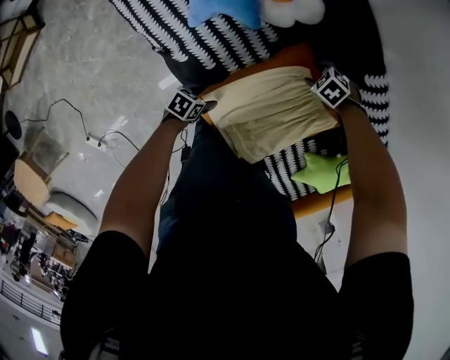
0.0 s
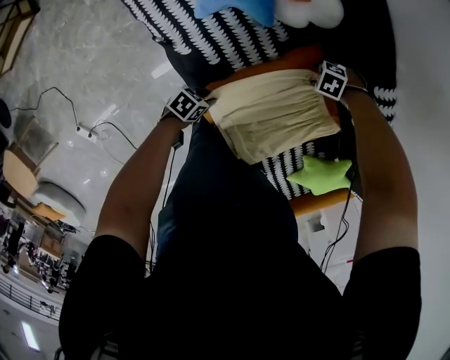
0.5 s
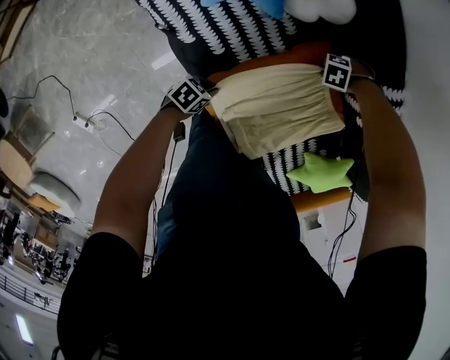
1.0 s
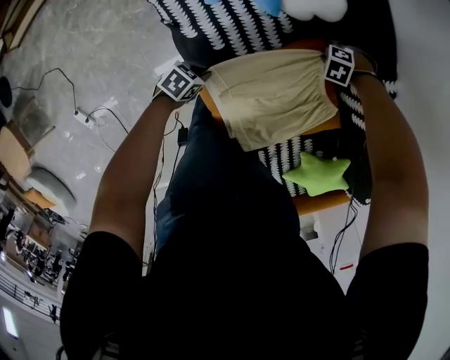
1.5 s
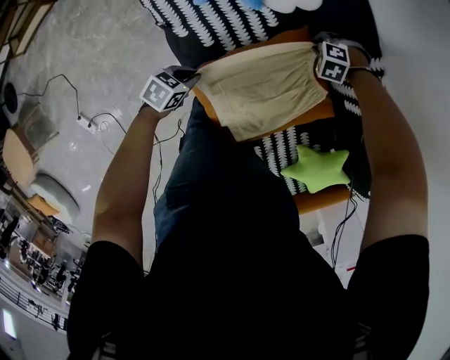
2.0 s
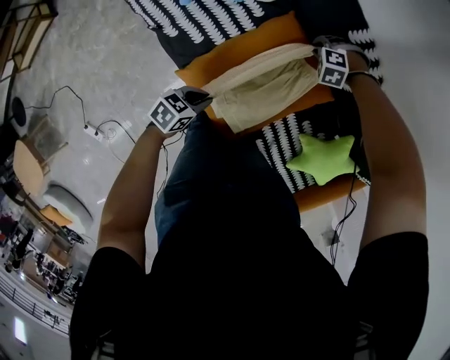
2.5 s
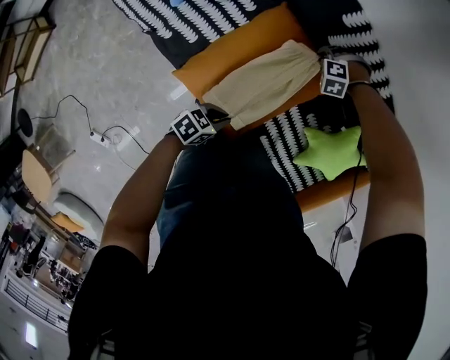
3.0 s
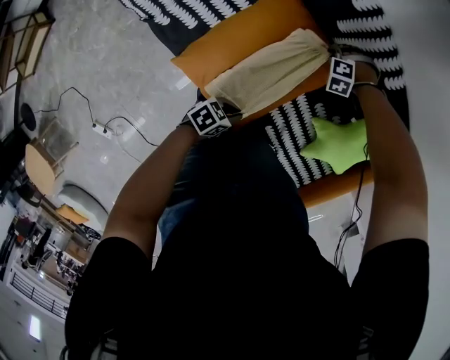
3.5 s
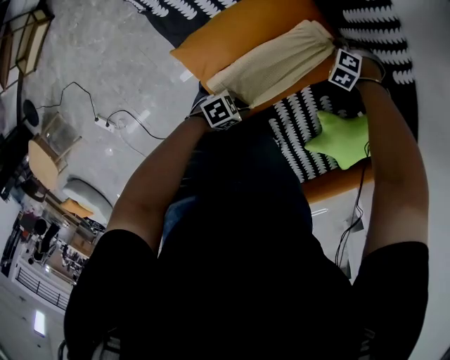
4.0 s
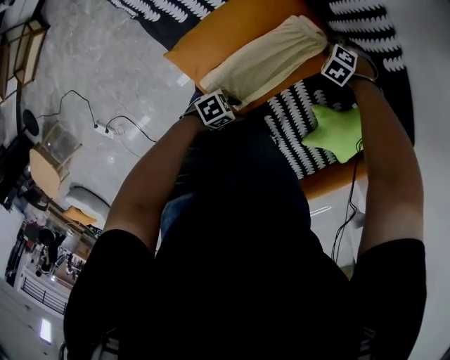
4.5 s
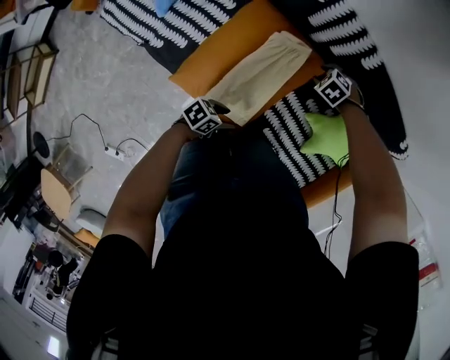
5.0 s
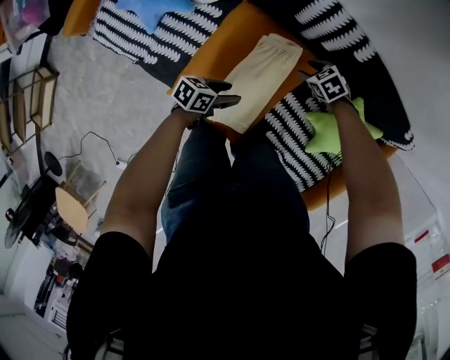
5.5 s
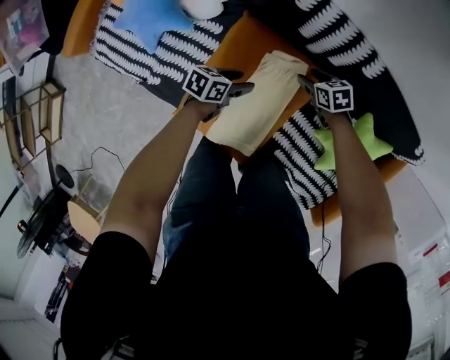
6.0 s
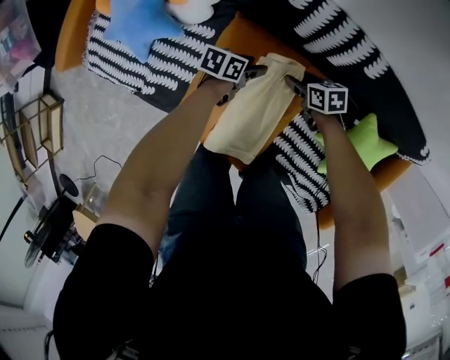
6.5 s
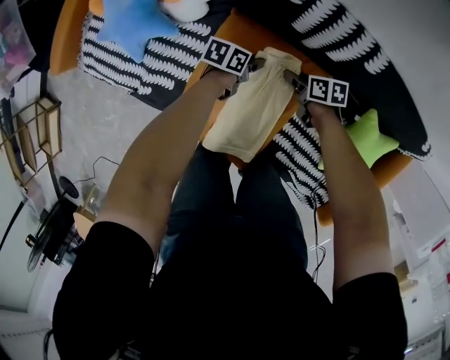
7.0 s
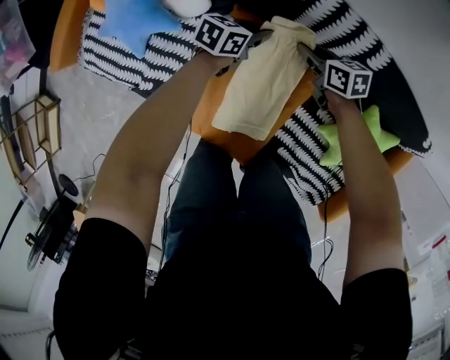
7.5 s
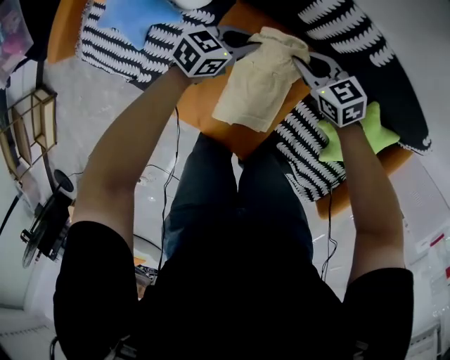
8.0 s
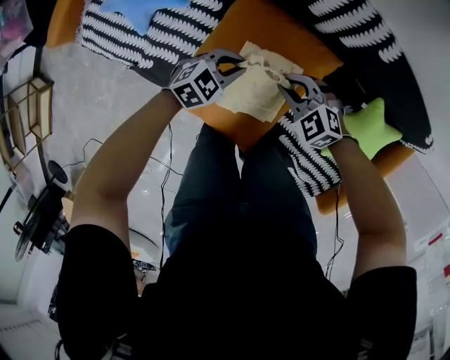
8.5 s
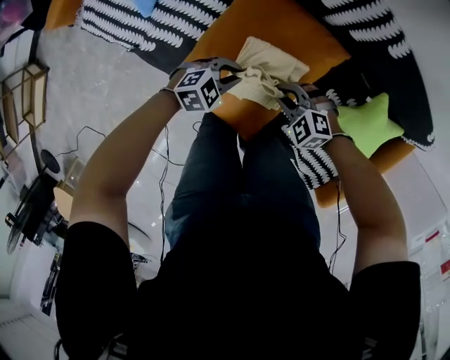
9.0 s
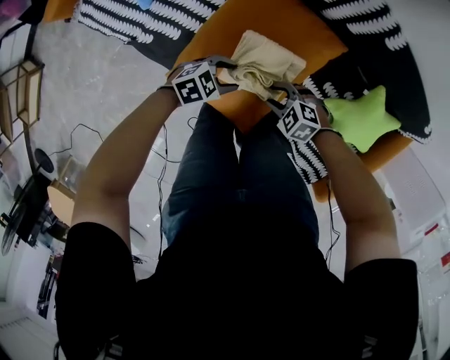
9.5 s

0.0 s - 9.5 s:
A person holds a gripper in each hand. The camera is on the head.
0.0 s - 2.0 s: The left gripper moves upward, some 10 cm, and closes up. Meanwhile the right gripper changes place by some 5 cm, changes its angle by some 40 degrees, and closes up.
2.0 s - 4.0 s: The left gripper moves some 35 cm, and swivels some 40 degrees, while the right gripper ends up roughly 25 cm from where it was.
4.0 s - 5.5 s: The left gripper shifts by about 15 cm, and opens its fingers; the right gripper heads upward, covering roughly 5 cm, rolls clockwise, seen from behind, by some 60 degrees, and opens up.
5.5 s - 7.5 s: The left gripper travels downward and back again, about 10 cm each way, and closes. Meanwhile the right gripper changes place by approximately 10 cm, changes its angle by about 50 degrees, and closes.
7.5 s - 9.5 s: The right gripper moves some 35 cm, and rotates around the line of its fingers by about 60 degrees, counterclockwise from behind. The left gripper moves about 30 cm, swivels about 40 degrees, and opens its fingers.

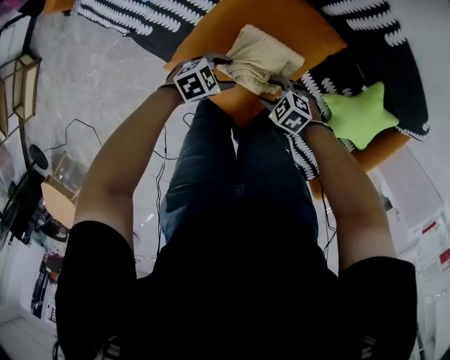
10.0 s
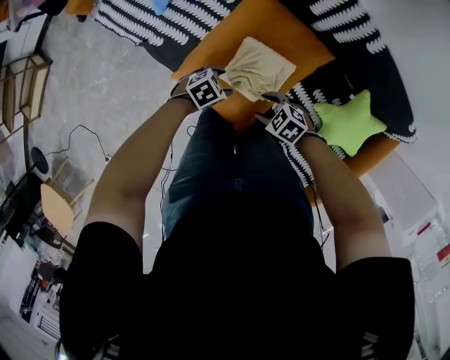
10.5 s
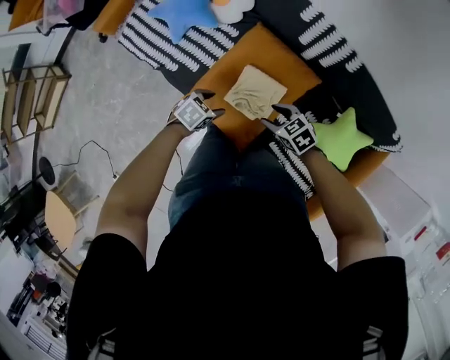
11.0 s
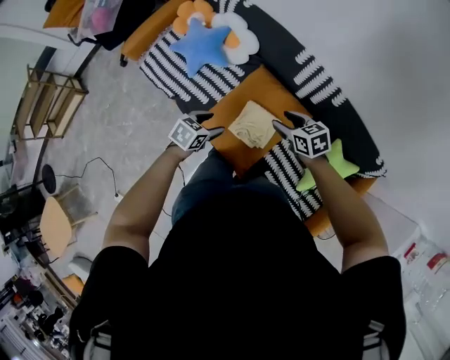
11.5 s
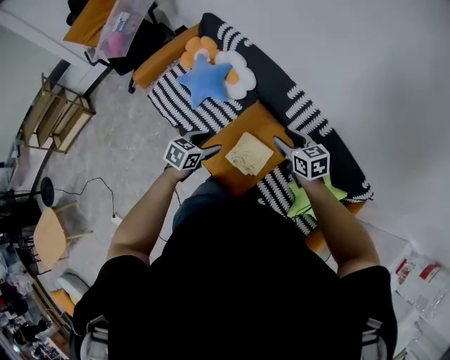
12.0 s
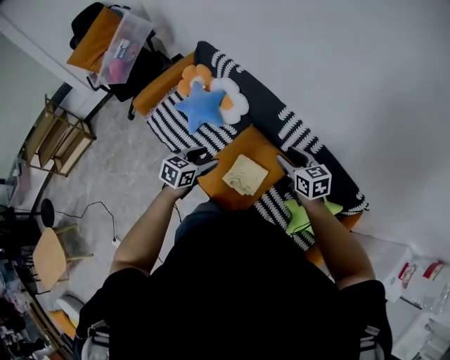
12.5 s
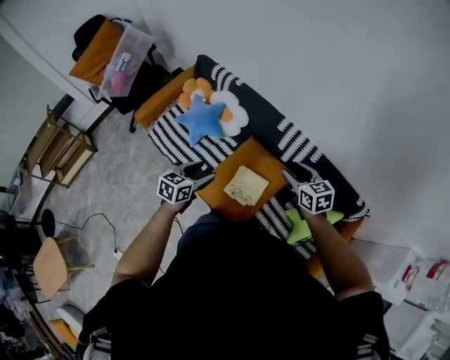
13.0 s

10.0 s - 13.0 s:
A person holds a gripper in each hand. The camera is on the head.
10.0 s - 11.5 s: The grippers both shift upward by about 35 cm. The left gripper swivels about 40 degrees. The right gripper rotates approximately 40 degrees.
11.5 s - 13.0 s: The two grippers go approximately 15 cm upward. The left gripper rotates approximately 20 degrees; the right gripper swivels approximately 20 degrees.

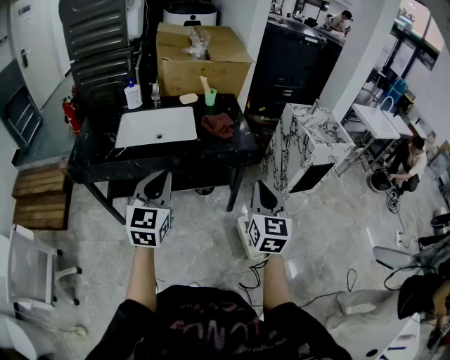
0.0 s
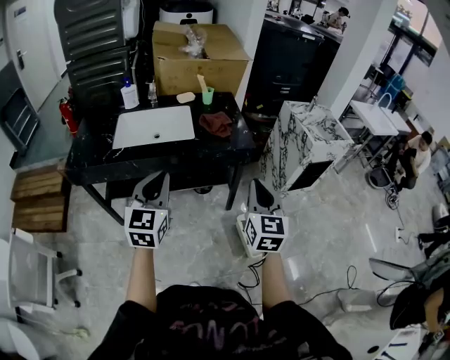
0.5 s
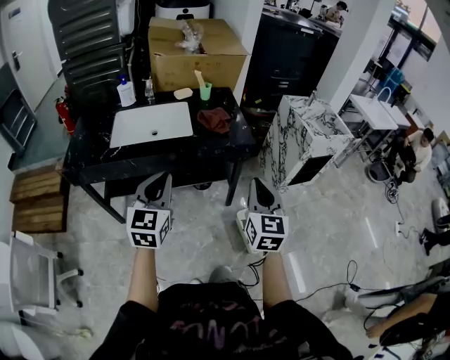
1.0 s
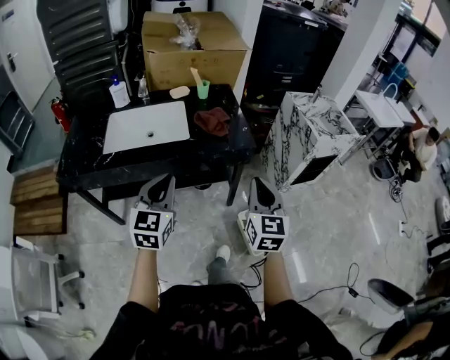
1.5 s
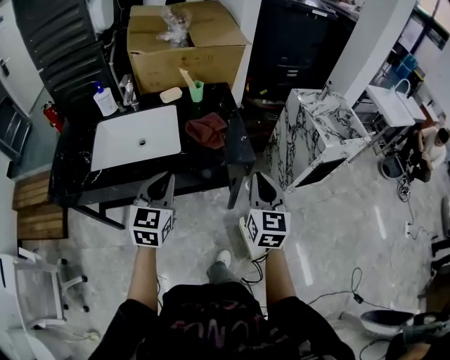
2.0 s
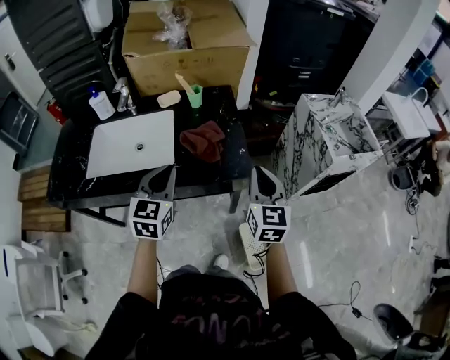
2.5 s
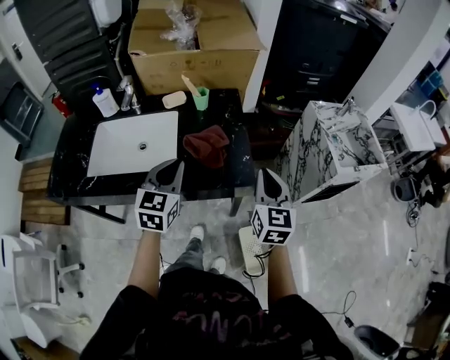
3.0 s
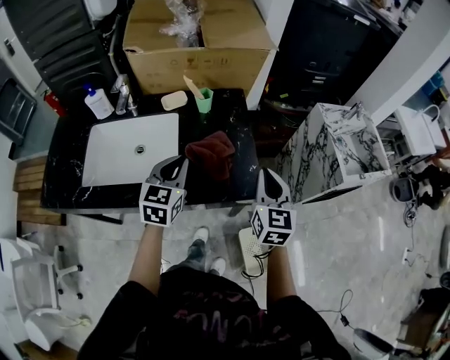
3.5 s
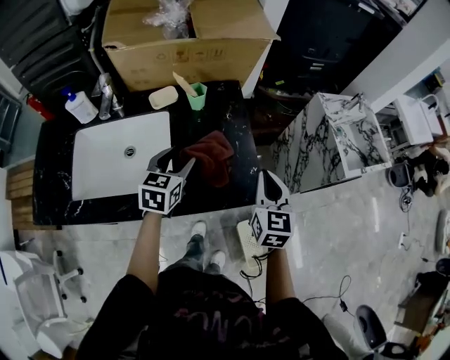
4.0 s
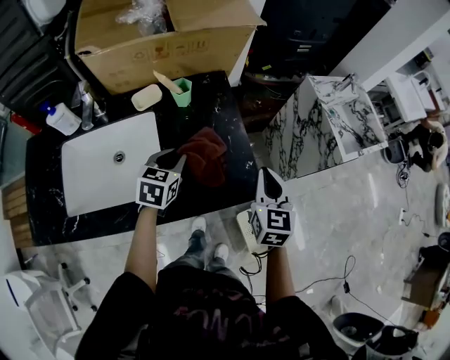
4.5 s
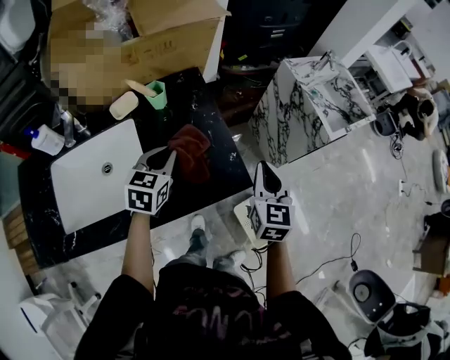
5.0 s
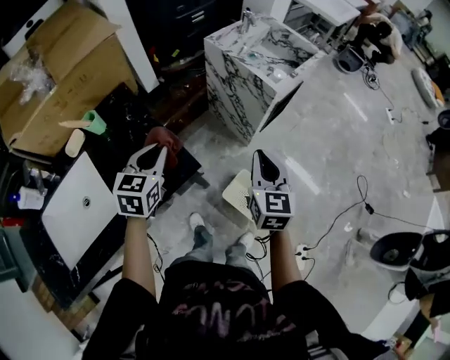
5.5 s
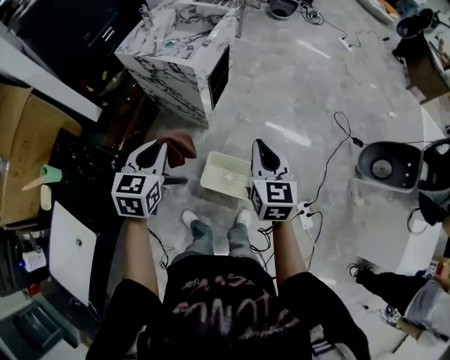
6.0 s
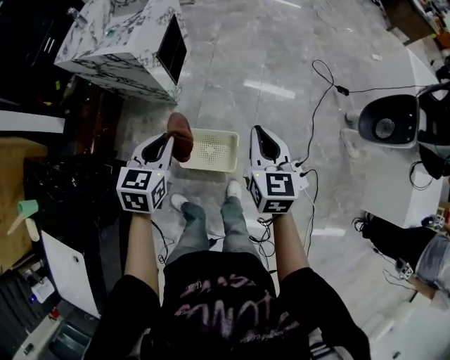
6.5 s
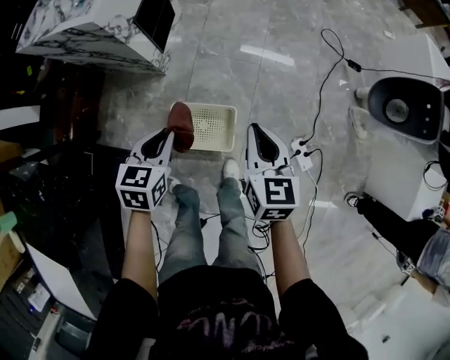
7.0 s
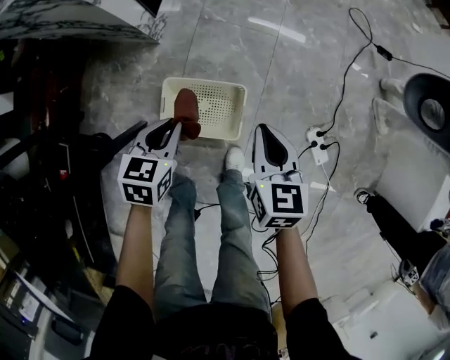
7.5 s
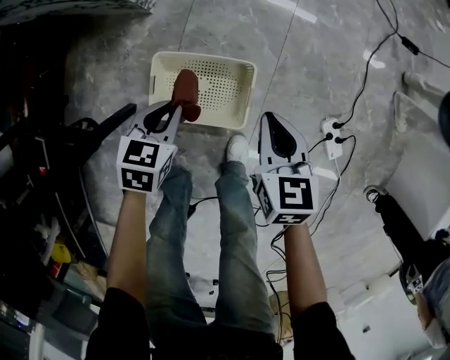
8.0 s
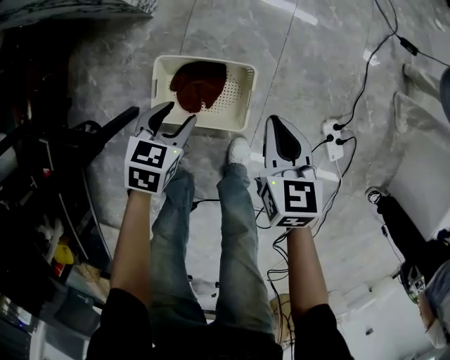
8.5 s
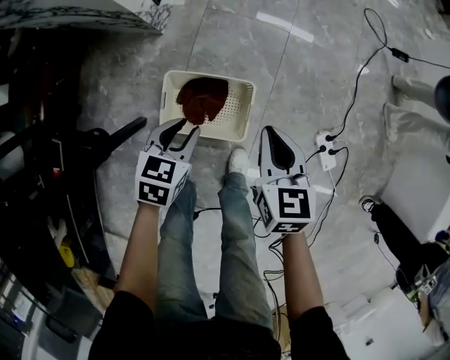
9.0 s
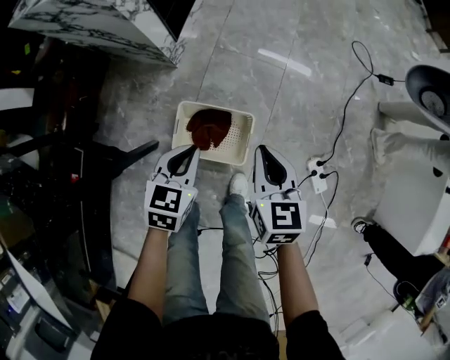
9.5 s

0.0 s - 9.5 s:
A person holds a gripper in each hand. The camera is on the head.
0.0 s - 2.0 s: Both grippers travel together forward, roughly 20 cm.
2.0 s - 4.0 s: The two grippers go approximately 25 cm forward. The left gripper opens.
4.0 s - 5.5 s: The right gripper changes place by roughly 25 cm, and rotates roughly 30 degrees. Meanwhile the left gripper shifts by about 20 cm, turns by some 30 degrees, and closes.
5.5 s - 7.5 s: Both grippers move downward, some 40 cm. The right gripper changes its angle by some 40 degrees; the left gripper changes its angle by roughly 40 degrees.
7.5 s - 9.5 s: The left gripper travels downward and back again, about 15 cm each way, and opens, then closes once more. The right gripper reaches approximately 15 cm downward, then returns.

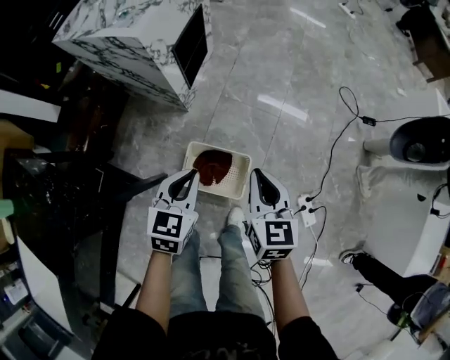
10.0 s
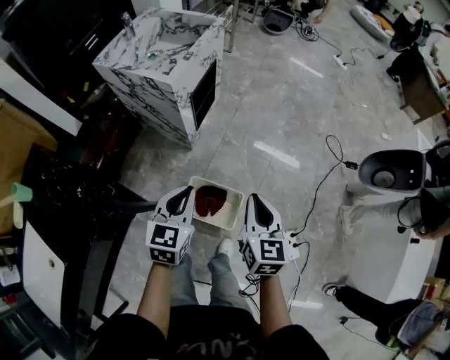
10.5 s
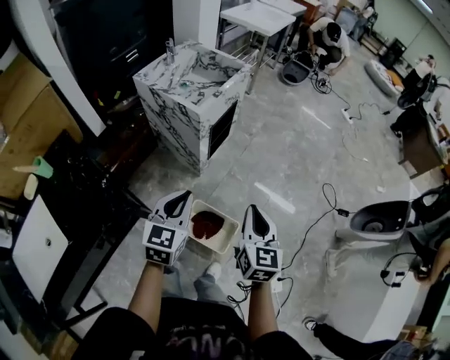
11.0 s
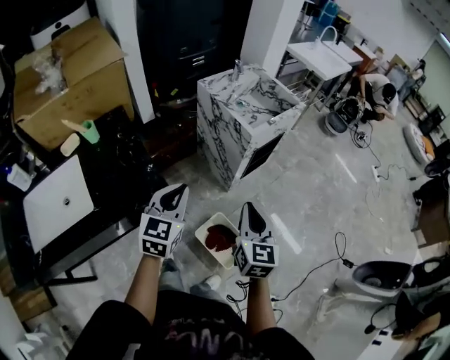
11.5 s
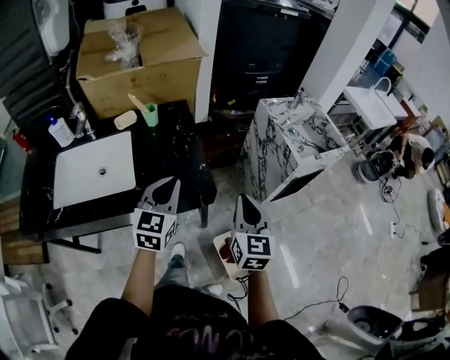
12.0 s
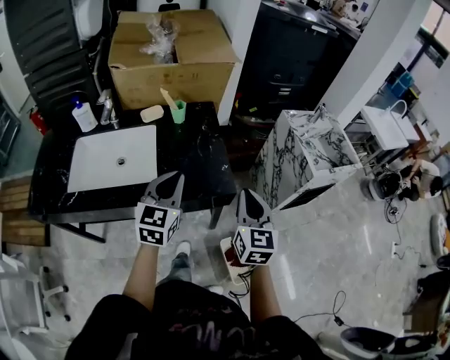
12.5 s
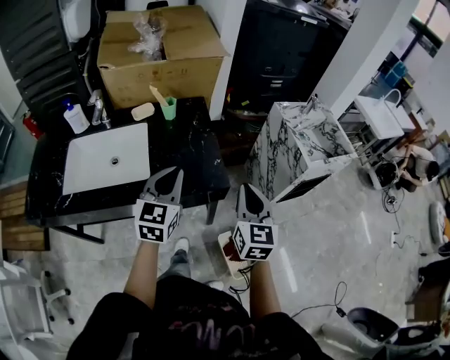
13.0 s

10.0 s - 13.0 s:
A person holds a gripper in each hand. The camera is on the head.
10.0 s - 11.5 s: Both grippers travel together upward, roughly 30 cm. The left gripper rotates approximately 40 degrees, while the right gripper changes its angle by about 30 degrees.
11.5 s - 13.0 s: The right gripper ends up about 25 cm from where it was, and swivels about 30 degrees. The left gripper shifts by roughly 25 cm, and swivels approximately 30 degrees.
